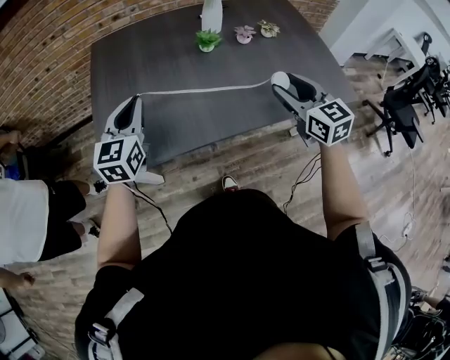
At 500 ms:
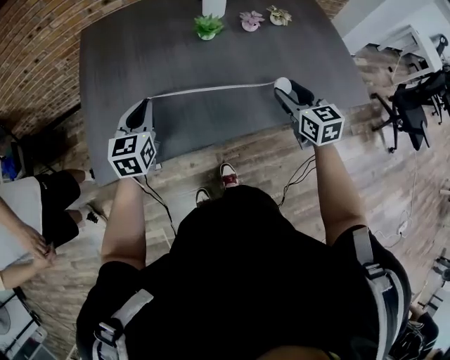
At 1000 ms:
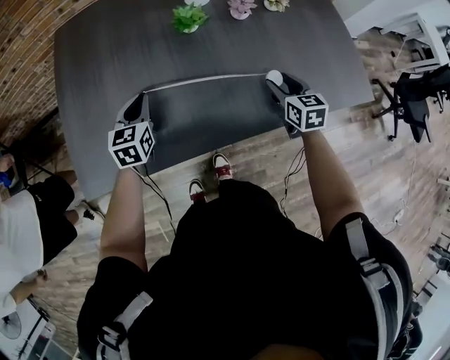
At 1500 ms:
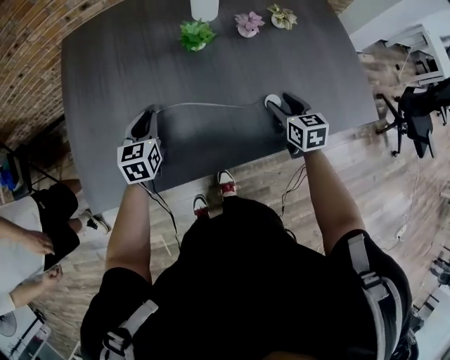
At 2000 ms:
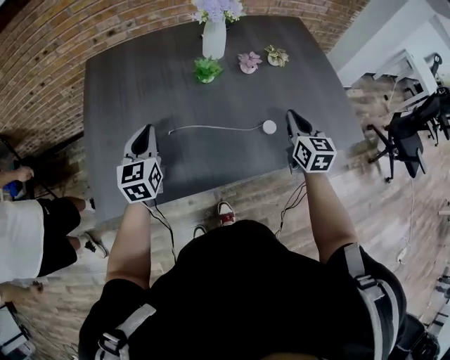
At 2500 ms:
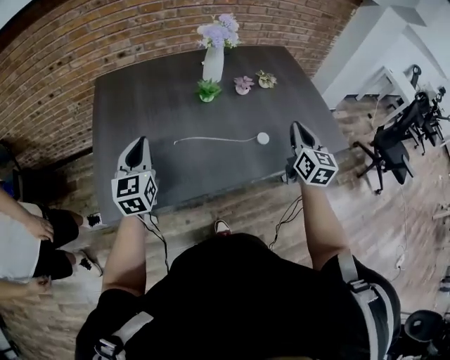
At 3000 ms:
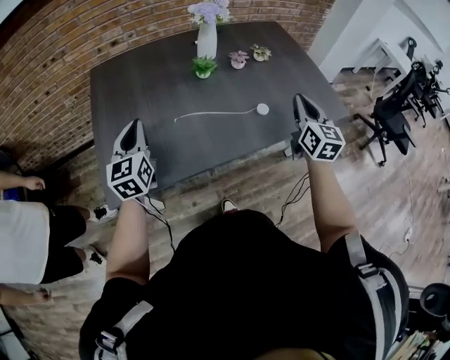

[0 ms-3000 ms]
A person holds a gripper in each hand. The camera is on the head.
0 ms to 1500 ms: The grippers both shift downward and forward by roughly 25 cm. The left gripper swivels roughly 20 degrees, while the right gripper swivels roughly 30 degrees.
1500 ms to 3000 ms: The right gripper heads upward and backward, covering roughly 25 cm, angles its fingers upward, by some 30 degrees, and closes its fingers. Meanwhile the left gripper moves upward, backward and to the left, approximately 20 cm, and changes its angle by about 20 degrees.

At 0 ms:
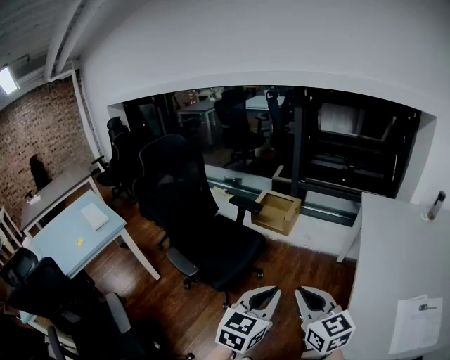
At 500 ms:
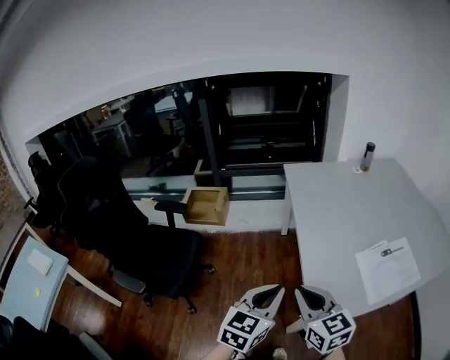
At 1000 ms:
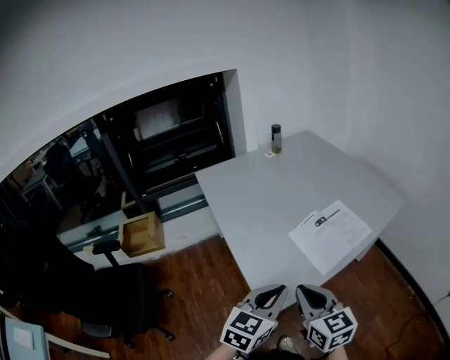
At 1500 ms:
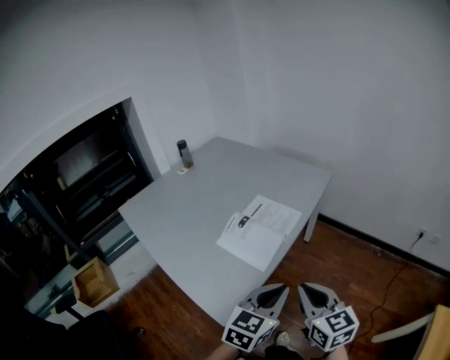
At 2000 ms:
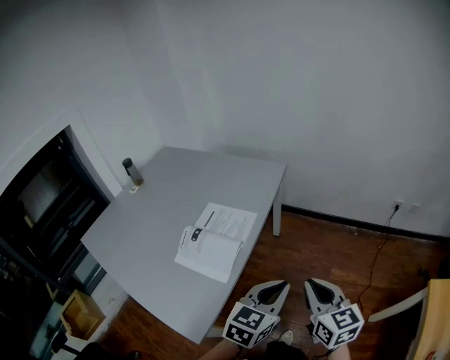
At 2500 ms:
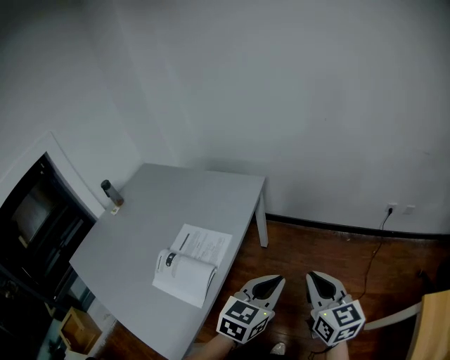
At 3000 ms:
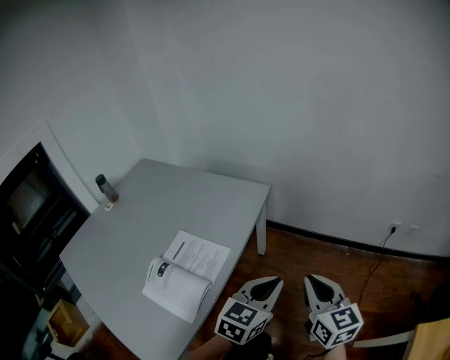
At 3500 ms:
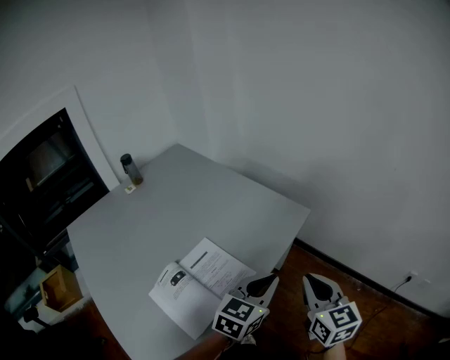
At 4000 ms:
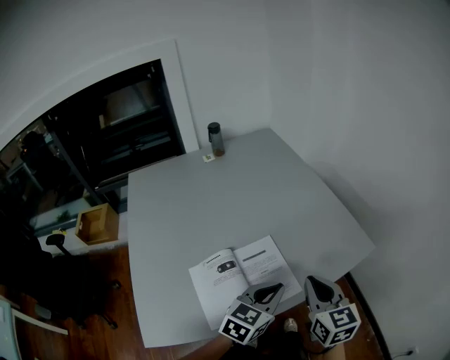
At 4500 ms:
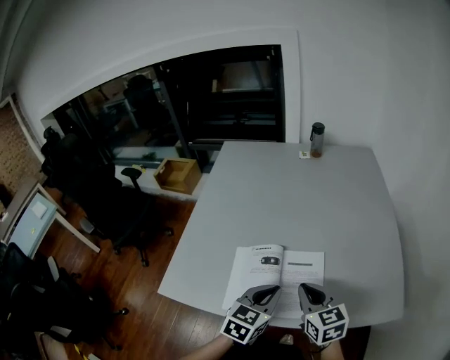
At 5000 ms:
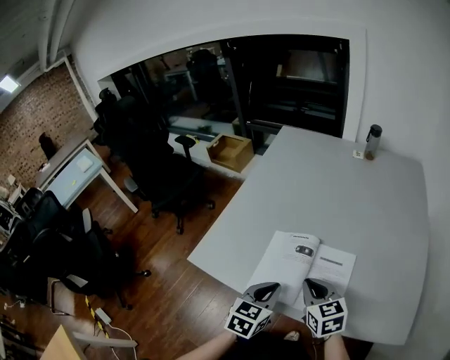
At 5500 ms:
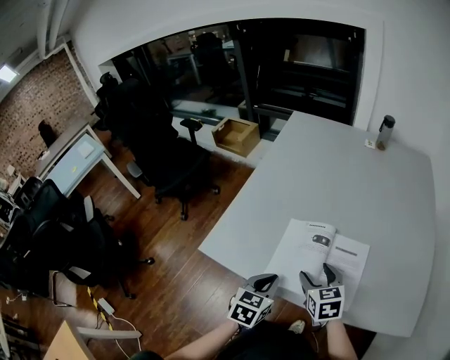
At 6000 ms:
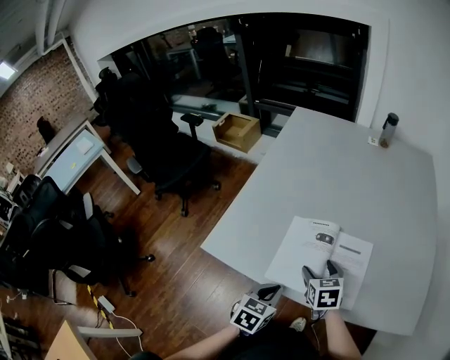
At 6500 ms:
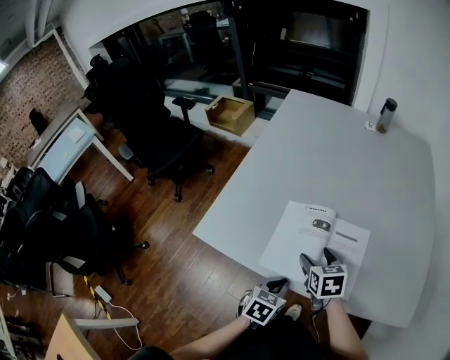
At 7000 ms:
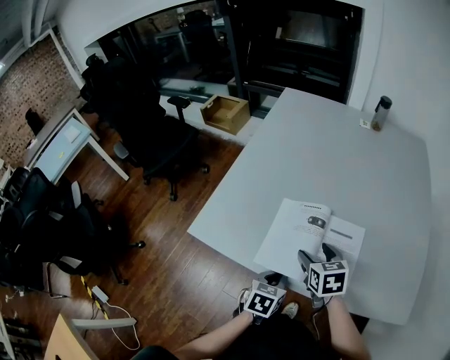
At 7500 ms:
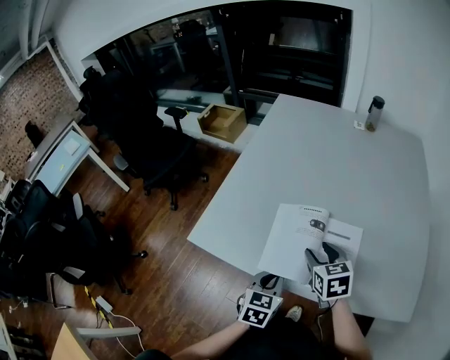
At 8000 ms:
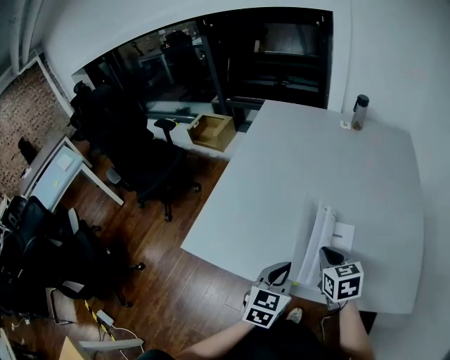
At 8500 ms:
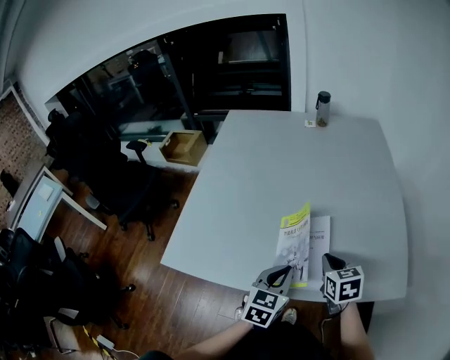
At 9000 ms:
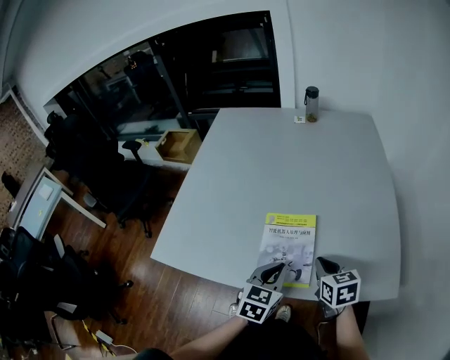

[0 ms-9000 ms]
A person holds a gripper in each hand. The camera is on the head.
0 ms to 2000 ms: Both grippers are carried roughly 60 cm. The right gripper changes its angle by some 90 degrees; the left gripper swivels about 90 degrees.
2000 ms to 4500 ms: The left gripper ends up some 35 cm from where it was, and swivels roughly 80 degrees. Meanwhile the right gripper moves about 40 cm, and changes its angle by about 80 degrees.
4500 ms to 7000 ms: The two grippers go roughly 15 cm downward and to the left. The right gripper opens its fingers; the left gripper changes its angle by roughly 30 degrees.
7000 ms to 9000 ms: The left gripper shifts about 15 cm to the right and upward, and changes its angle by approximately 20 degrees; the right gripper is displaced to the right by approximately 20 cm, and closes.

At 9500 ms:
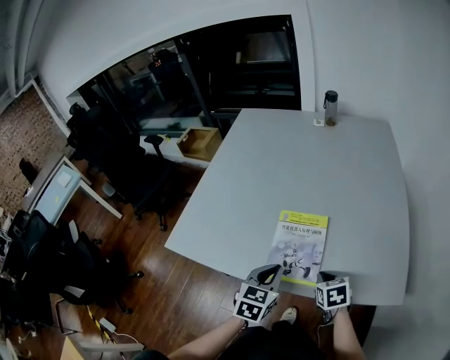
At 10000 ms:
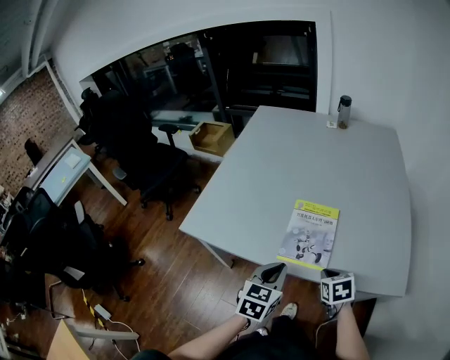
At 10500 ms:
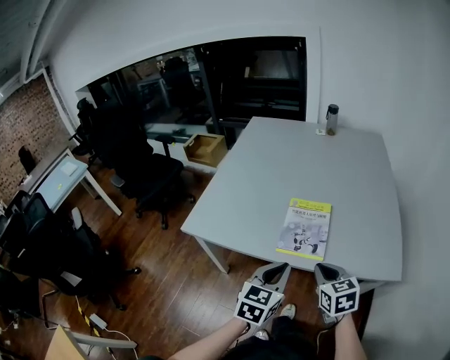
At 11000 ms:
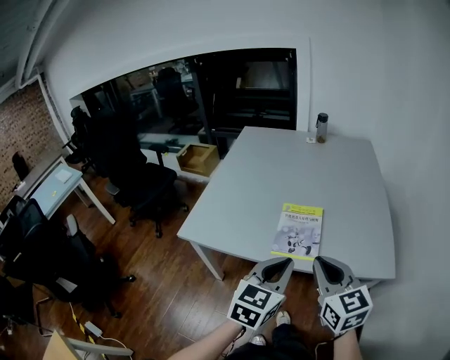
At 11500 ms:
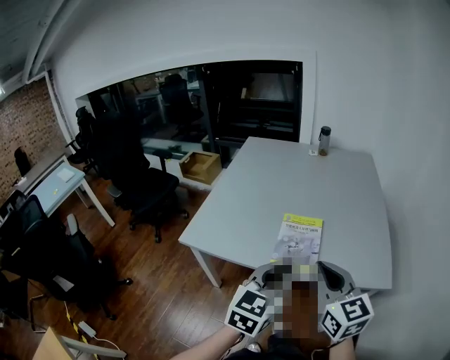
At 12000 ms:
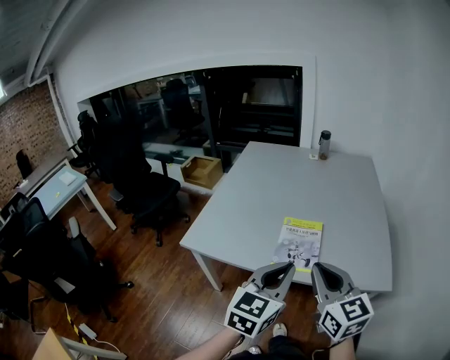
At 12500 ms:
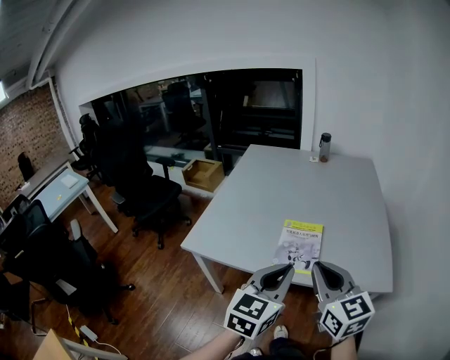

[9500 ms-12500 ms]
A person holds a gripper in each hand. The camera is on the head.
9500 ms to 11000 ms: Both grippers travel together upward and backward, some 25 cm. The right gripper points its fingers about 40 degrees further upward.
11000 ms to 12500 ms: There are only small adjustments of the grippers.

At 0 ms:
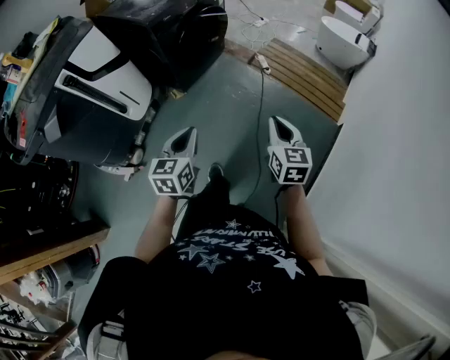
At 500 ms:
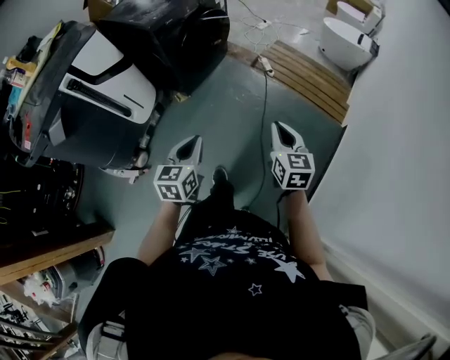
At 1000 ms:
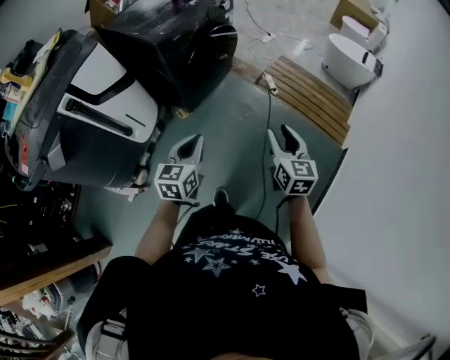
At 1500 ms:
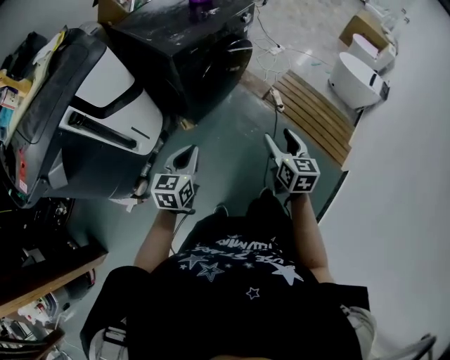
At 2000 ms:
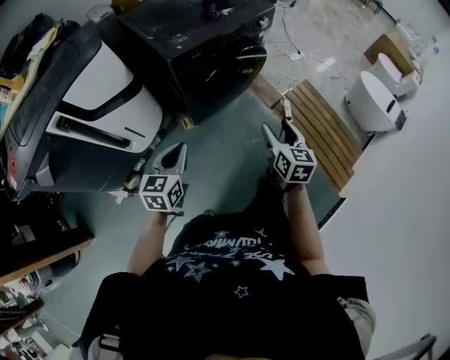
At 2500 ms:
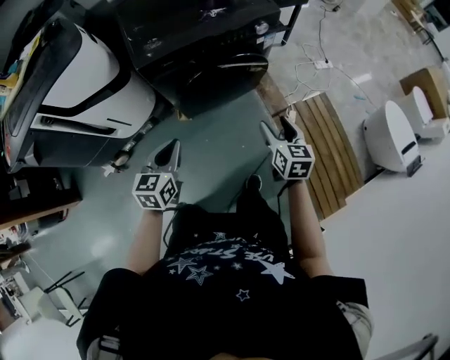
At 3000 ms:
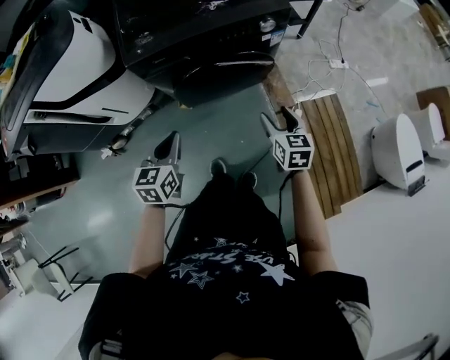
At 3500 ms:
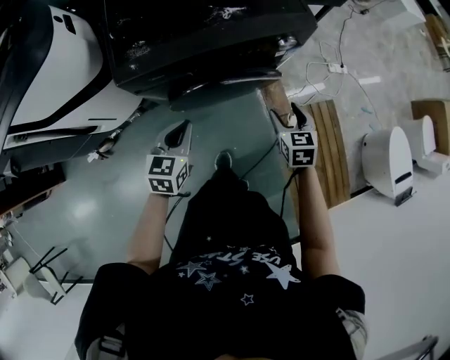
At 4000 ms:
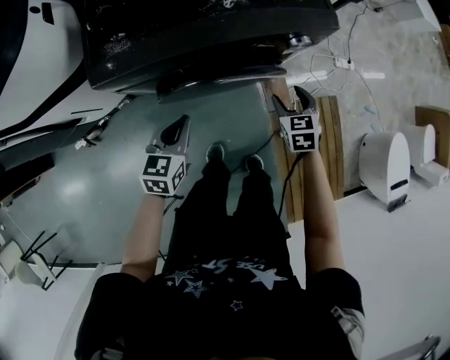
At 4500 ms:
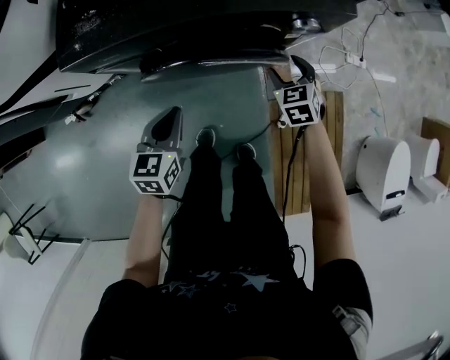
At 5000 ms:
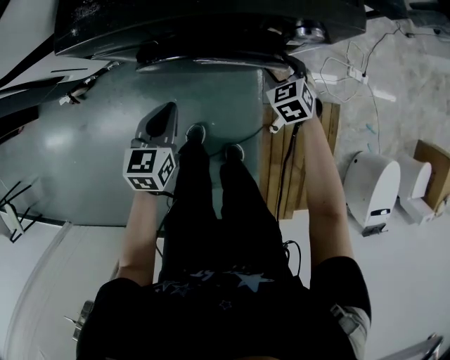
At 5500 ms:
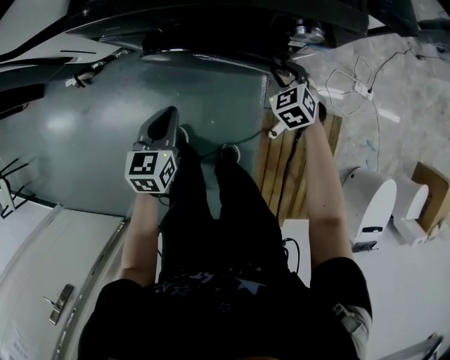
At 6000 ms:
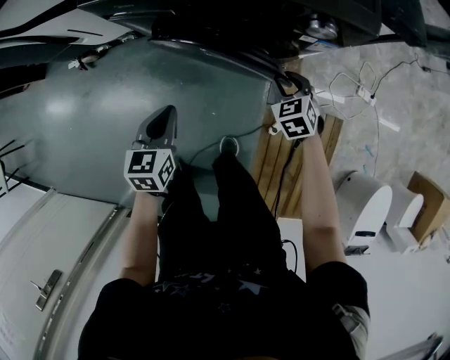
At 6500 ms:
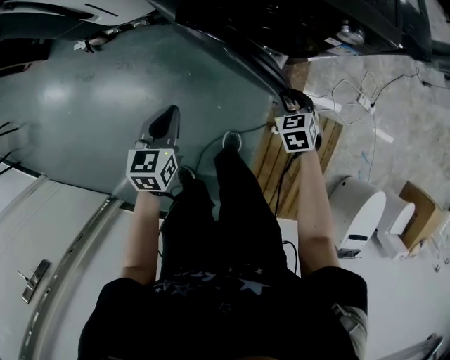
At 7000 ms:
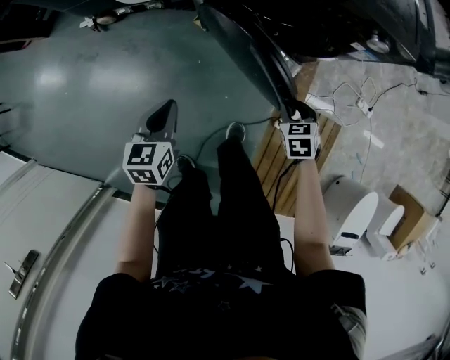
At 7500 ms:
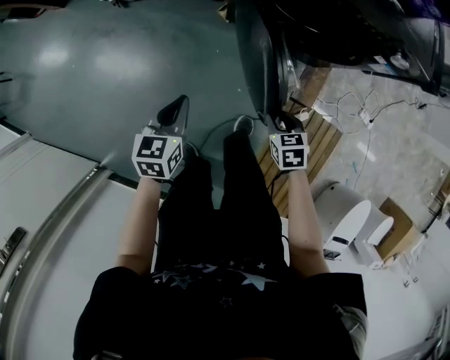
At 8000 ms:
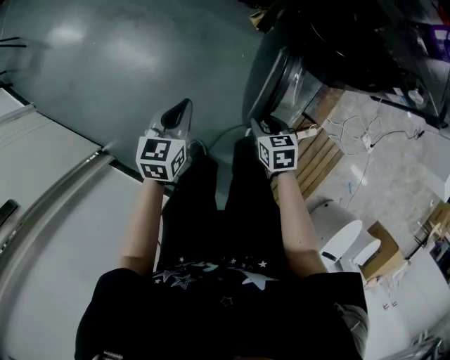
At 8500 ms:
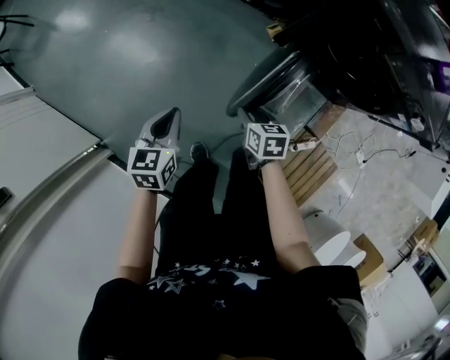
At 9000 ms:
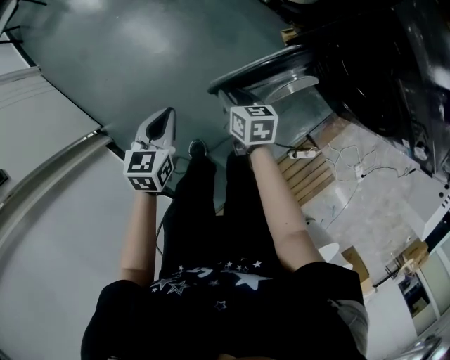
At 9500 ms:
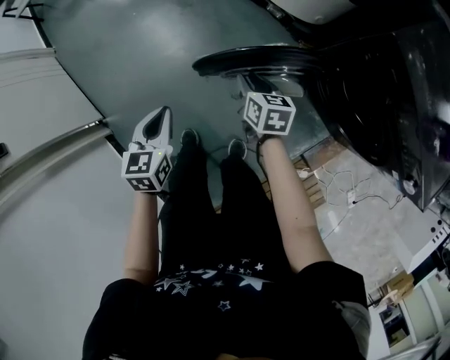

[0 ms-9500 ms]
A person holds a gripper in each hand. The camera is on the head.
0 ms to 2000 ms: Both grippers travel together forward, roughly 35 cm. The right gripper opens its fingers.
2000 ms to 4000 ms: The right gripper moves approximately 50 cm, and rotates some 50 degrees, while the left gripper ends up some 40 cm from where it was, and rotates about 20 degrees.
4000 ms to 5500 ms: The right gripper shifts about 5 cm downward, changes its angle by about 40 degrees, and closes its fingers. The left gripper moves approximately 10 cm, and swivels about 20 degrees.
5500 ms to 7500 ms: The right gripper travels backward and to the left by approximately 35 cm, and turns by approximately 20 degrees. Meanwhile the left gripper shifts about 30 cm to the left and backward.
7500 ms to 9500 ms: The right gripper changes place by some 35 cm, and swivels about 30 degrees. The left gripper ends up roughly 20 cm from where it was, and changes its angle by some 40 degrees.

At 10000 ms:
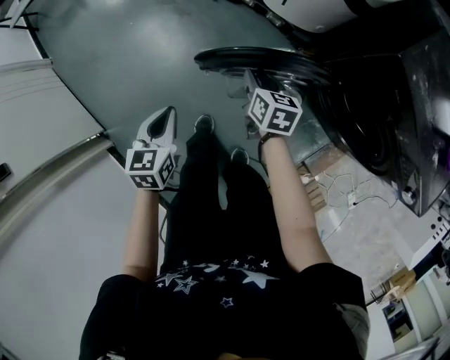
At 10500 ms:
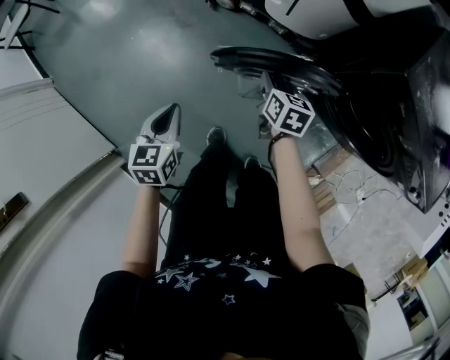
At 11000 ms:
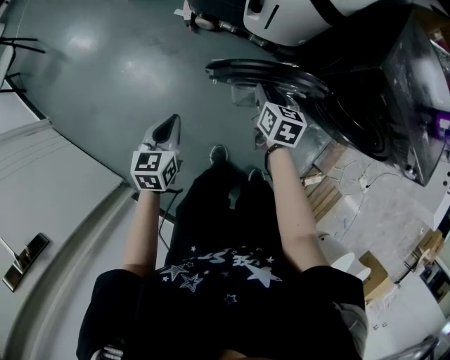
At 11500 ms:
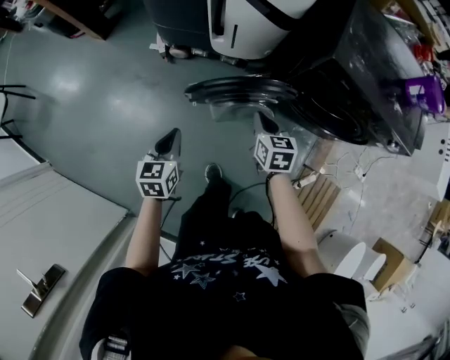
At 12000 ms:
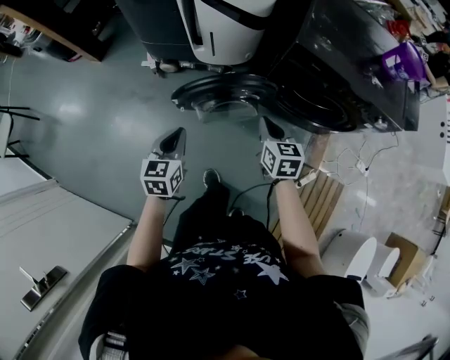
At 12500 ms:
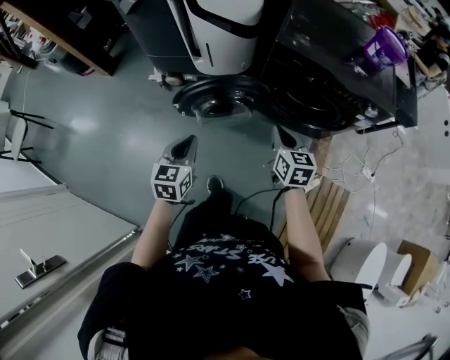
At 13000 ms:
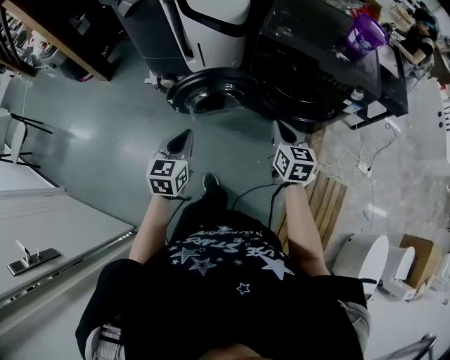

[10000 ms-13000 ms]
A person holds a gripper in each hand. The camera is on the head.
10000 ms to 11500 ms: The right gripper heads upward, covering roughly 10 cm, swivels about 20 degrees, and closes its fingers, while the left gripper shifts by approximately 15 cm, and changes its angle by roughly 30 degrees.
11500 ms to 13000 ms: The grippers both shift to the right, backward and upward by some 25 cm.
